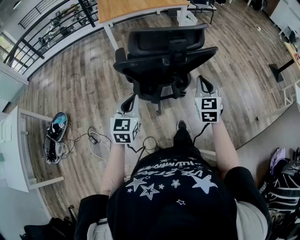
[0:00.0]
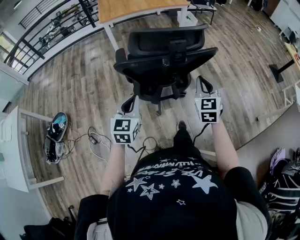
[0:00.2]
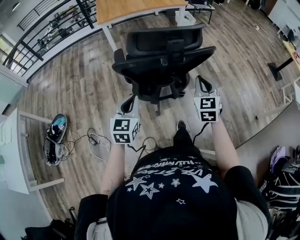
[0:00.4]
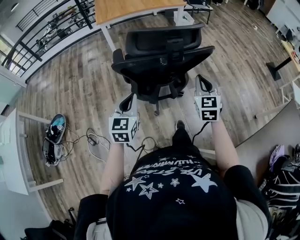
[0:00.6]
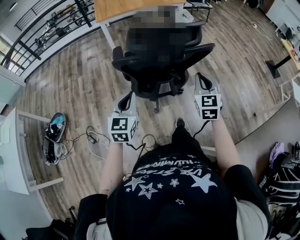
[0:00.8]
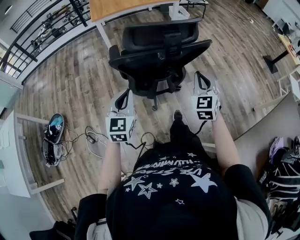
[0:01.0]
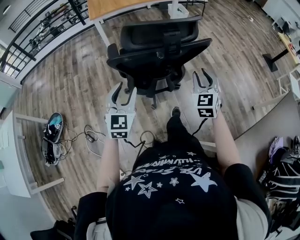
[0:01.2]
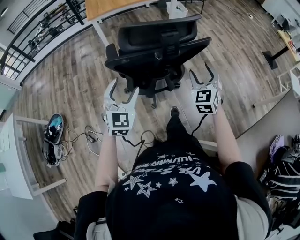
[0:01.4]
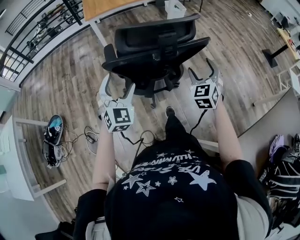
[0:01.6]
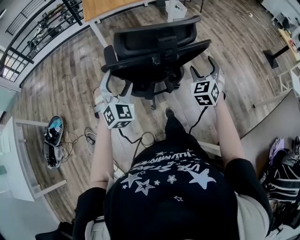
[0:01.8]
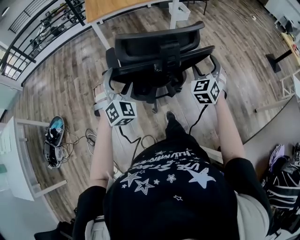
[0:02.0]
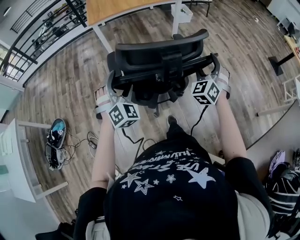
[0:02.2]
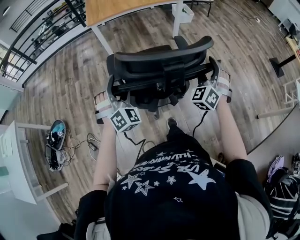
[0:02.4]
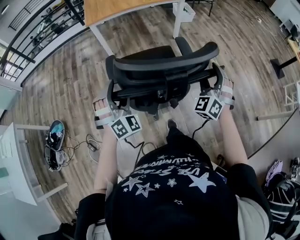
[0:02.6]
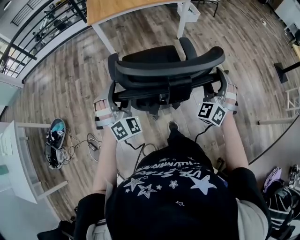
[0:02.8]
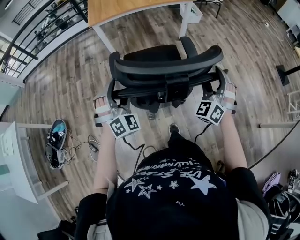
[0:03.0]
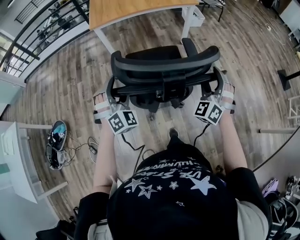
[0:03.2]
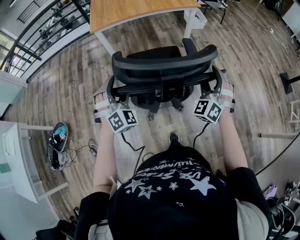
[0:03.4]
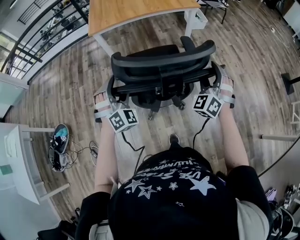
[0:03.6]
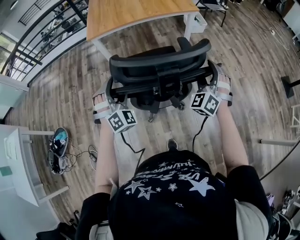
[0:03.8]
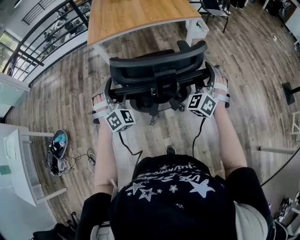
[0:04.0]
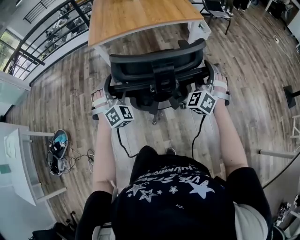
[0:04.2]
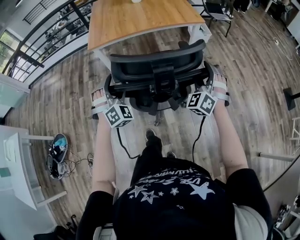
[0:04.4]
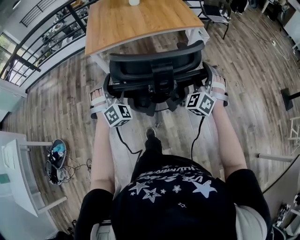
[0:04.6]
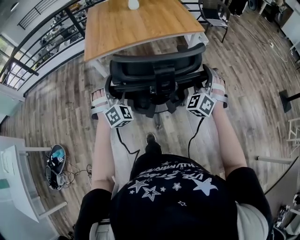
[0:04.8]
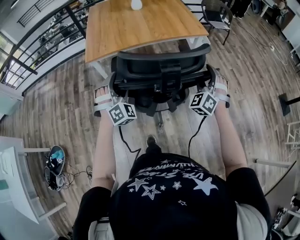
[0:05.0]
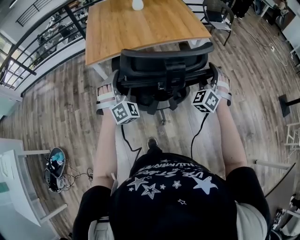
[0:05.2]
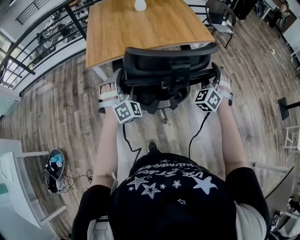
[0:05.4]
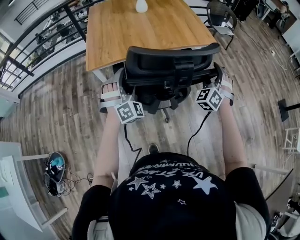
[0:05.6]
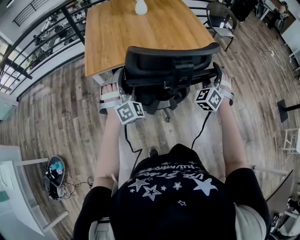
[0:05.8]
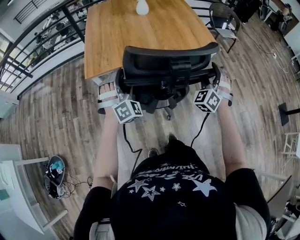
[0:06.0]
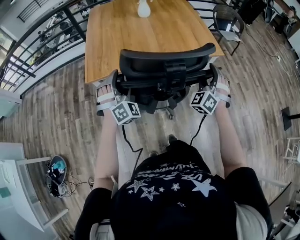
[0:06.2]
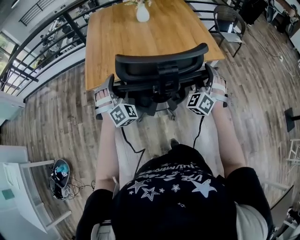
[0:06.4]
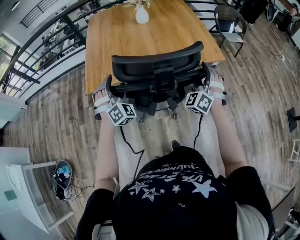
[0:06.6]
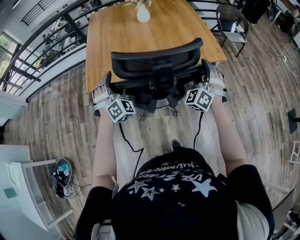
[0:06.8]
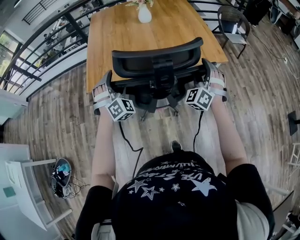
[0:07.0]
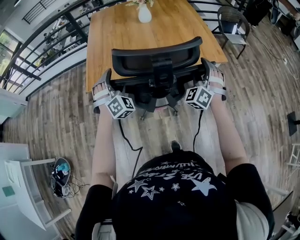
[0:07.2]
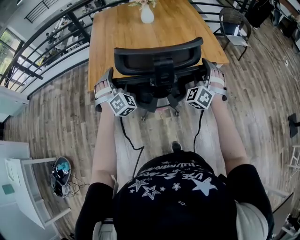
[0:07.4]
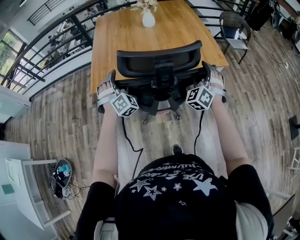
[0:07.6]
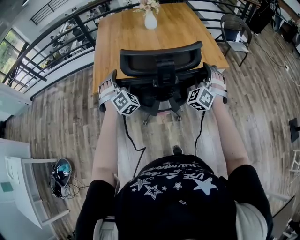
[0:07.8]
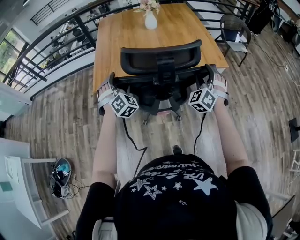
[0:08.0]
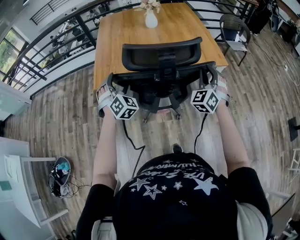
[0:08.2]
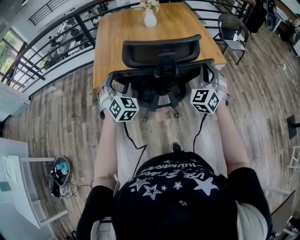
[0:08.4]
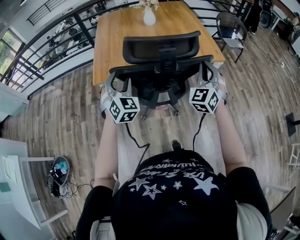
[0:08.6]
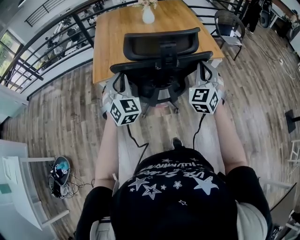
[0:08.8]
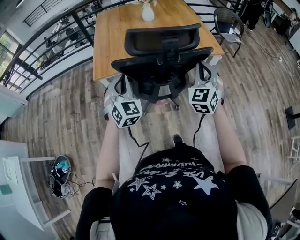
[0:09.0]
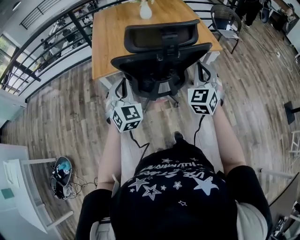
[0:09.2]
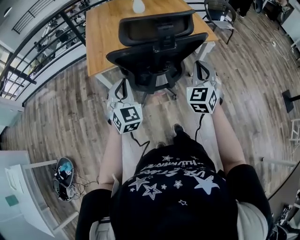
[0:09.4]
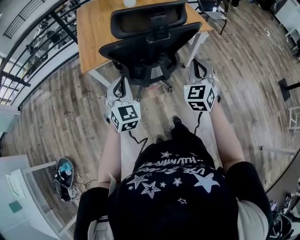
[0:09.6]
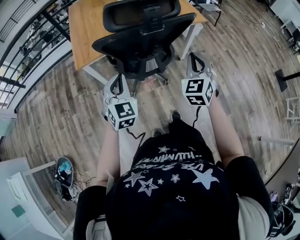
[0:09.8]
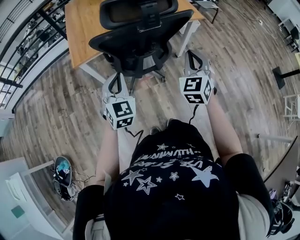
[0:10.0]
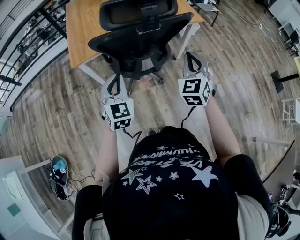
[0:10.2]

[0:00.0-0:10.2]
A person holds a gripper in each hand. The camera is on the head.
0:00.0 to 0:01.4: The left gripper turns by some 20 degrees, and opens, while the right gripper opens.
0:01.4 to 0:03.0: Both grippers move forward, about 25 cm. The right gripper swivels about 30 degrees. Meanwhile the left gripper rotates about 40 degrees.
0:03.0 to 0:04.4: The two grippers go approximately 25 cm forward.
0:04.4 to 0:05.8: The two grippers go roughly 30 cm forward.
0:05.8 to 0:07.2: The two grippers go approximately 15 cm forward.
0:07.2 to 0:08.8: The two grippers go roughly 15 cm backward and upward. The right gripper swivels approximately 30 degrees, and closes up. The left gripper rotates about 30 degrees, and closes its fingers.
0:08.8 to 0:10.2: The grippers both shift backward and downward by approximately 15 cm. The left gripper swivels roughly 20 degrees.

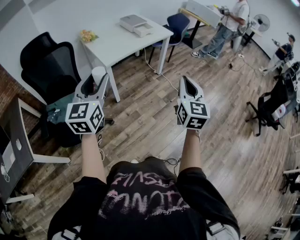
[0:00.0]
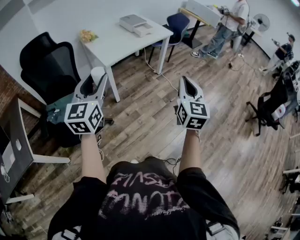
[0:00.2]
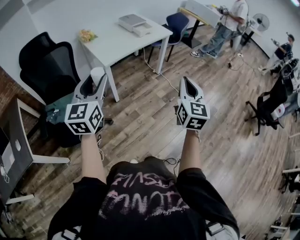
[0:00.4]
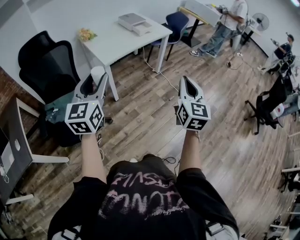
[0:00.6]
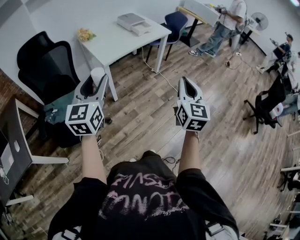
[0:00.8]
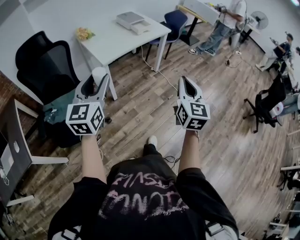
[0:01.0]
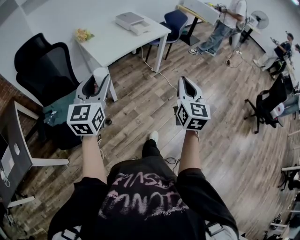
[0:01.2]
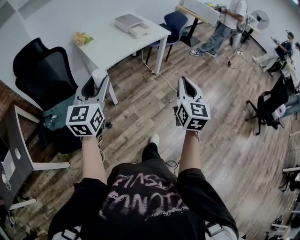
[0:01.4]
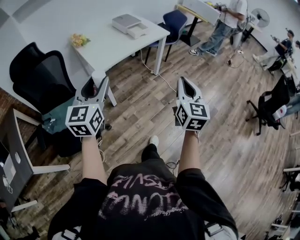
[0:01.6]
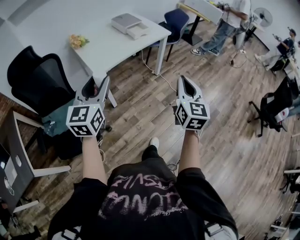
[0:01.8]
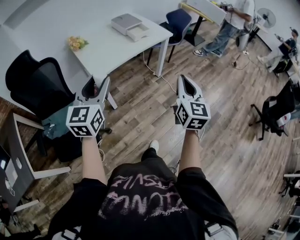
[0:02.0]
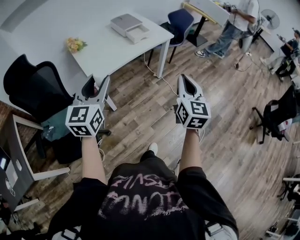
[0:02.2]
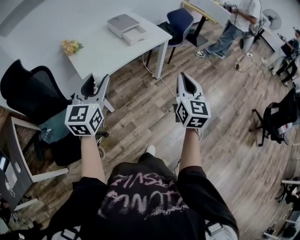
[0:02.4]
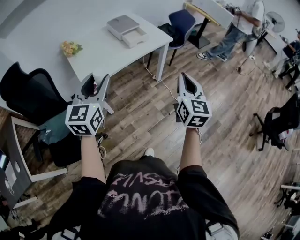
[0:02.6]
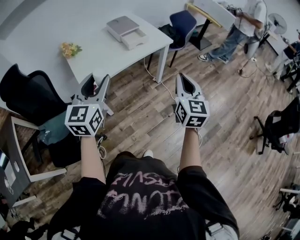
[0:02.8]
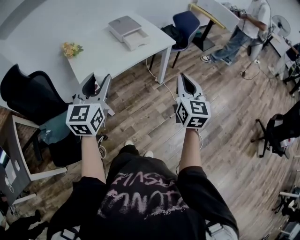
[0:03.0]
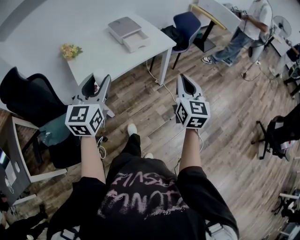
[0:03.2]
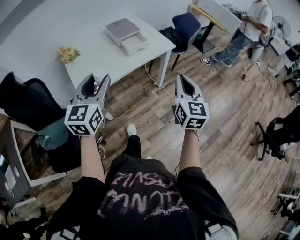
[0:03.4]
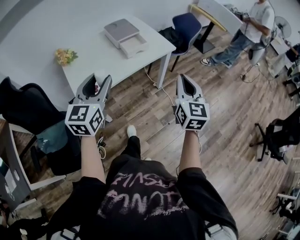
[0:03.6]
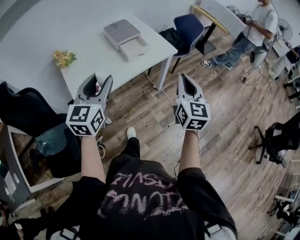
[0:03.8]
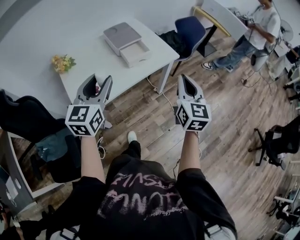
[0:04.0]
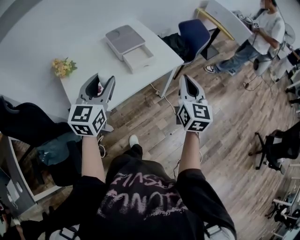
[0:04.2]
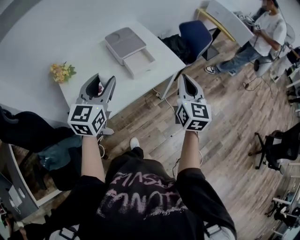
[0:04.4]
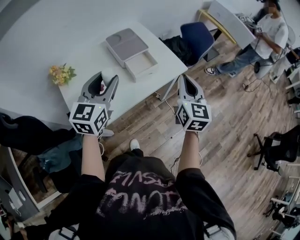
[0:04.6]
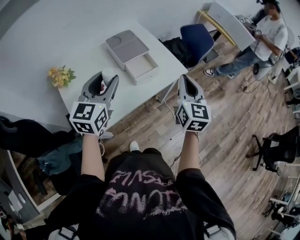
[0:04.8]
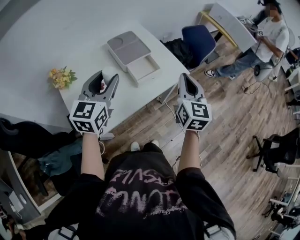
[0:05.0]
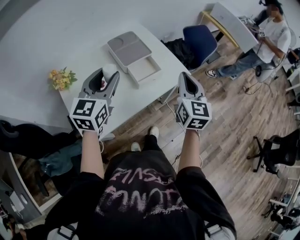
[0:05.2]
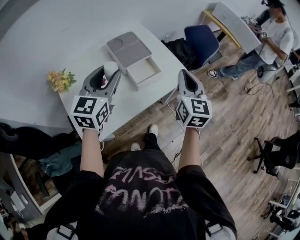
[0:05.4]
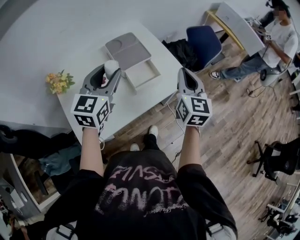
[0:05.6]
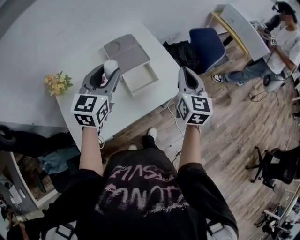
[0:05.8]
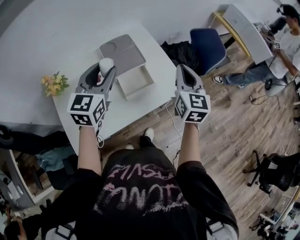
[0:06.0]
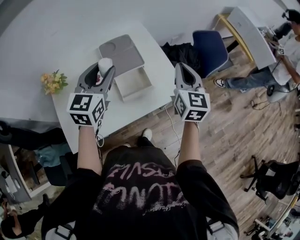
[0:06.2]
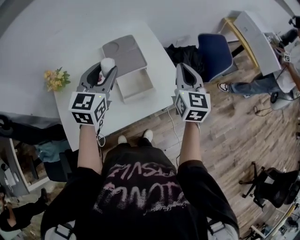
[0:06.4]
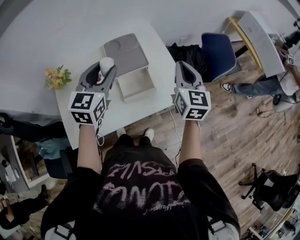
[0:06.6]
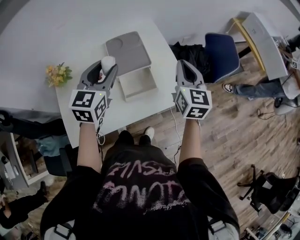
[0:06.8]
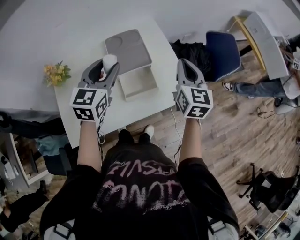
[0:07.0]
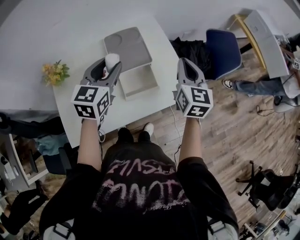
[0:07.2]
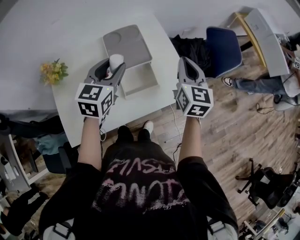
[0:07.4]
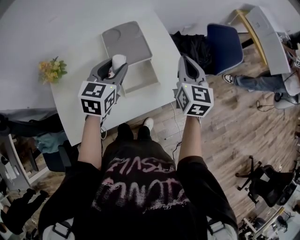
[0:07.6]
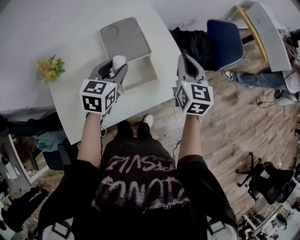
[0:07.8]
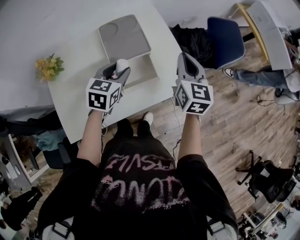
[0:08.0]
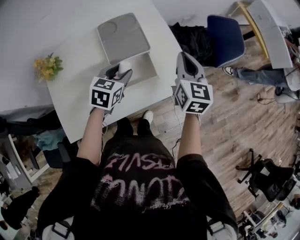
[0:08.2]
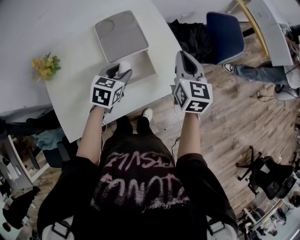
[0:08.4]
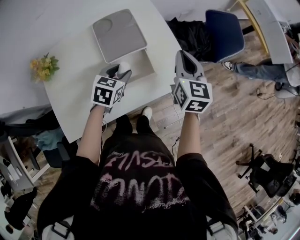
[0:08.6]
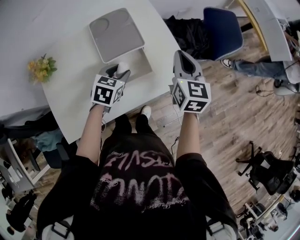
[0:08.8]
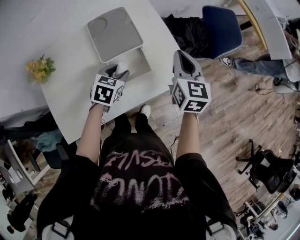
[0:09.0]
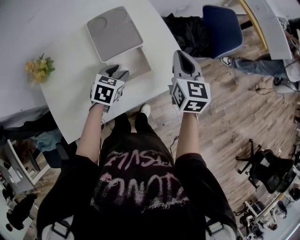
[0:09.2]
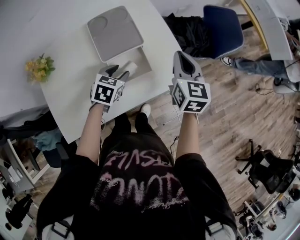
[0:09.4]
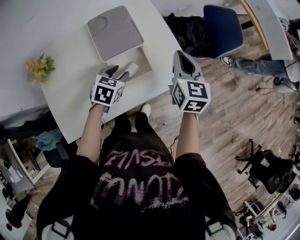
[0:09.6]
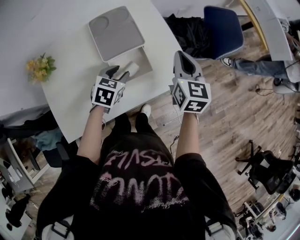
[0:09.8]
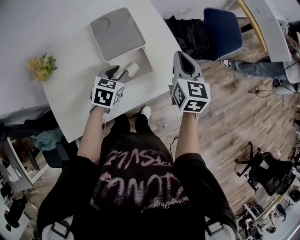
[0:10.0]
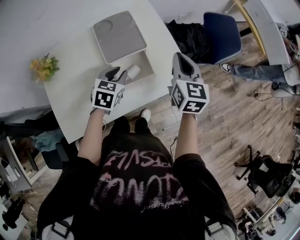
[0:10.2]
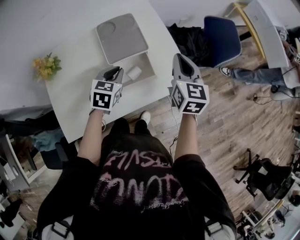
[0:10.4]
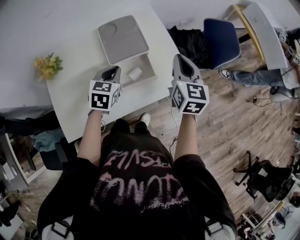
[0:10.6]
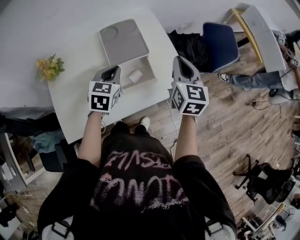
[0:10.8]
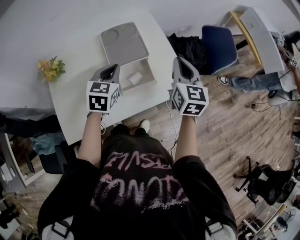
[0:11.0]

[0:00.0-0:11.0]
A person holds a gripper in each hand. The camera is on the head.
0:00.0 to 0:01.6: Both grippers move forward, approximately 10 cm.
0:01.6 to 0:03.2: Both grippers move forward, some 30 cm.
0:03.2 to 0:04.8: The two grippers go some 30 cm forward.
0:04.8 to 0:06.2: Both grippers move forward, some 20 cm.
0:06.2 to 0:07.8: The right gripper is displaced downward and forward by approximately 10 cm, while the left gripper travels downward by roughly 10 cm.
0:07.8 to 0:09.4: The left gripper shifts roughly 15 cm downward, and turns by about 20 degrees.
0:09.4 to 0:11.0: The left gripper shifts roughly 15 cm upward, swivels some 20 degrees, and closes up, while the right gripper travels upward by approximately 5 cm.

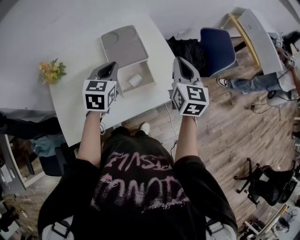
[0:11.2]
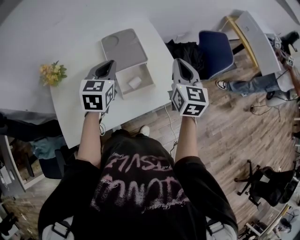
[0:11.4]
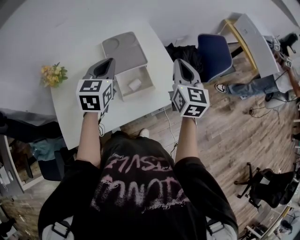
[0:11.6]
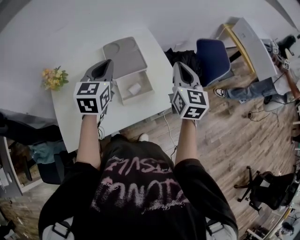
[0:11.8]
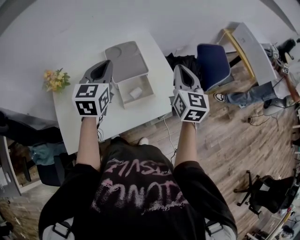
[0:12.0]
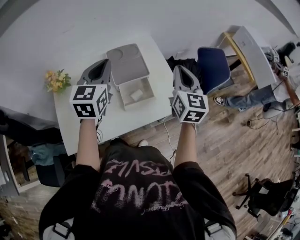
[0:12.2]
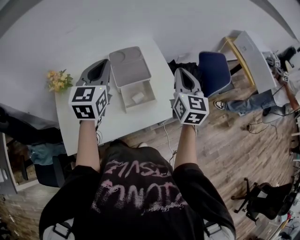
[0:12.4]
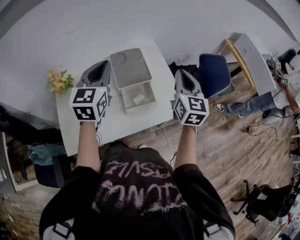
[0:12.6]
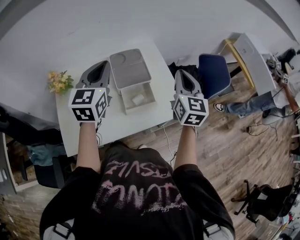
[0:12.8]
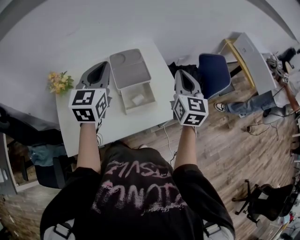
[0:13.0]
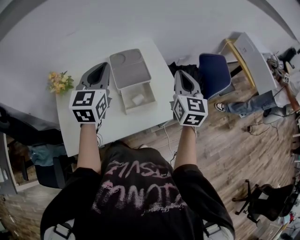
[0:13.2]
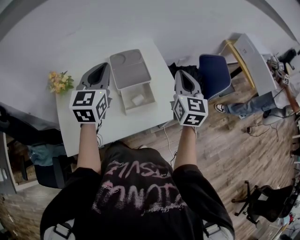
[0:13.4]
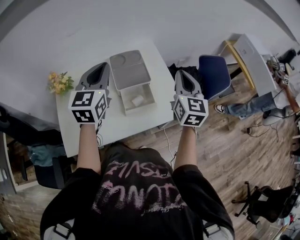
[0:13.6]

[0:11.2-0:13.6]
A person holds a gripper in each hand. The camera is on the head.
0:11.2 to 0:12.4: The left gripper heads upward, covering roughly 15 cm, and rotates about 20 degrees.
0:12.4 to 0:13.6: Neither gripper changes place.
